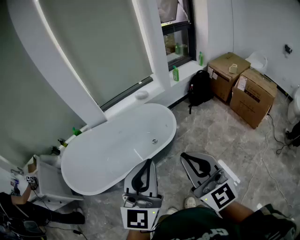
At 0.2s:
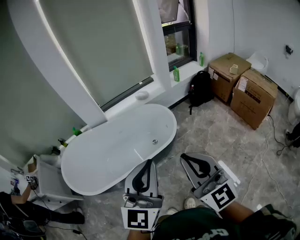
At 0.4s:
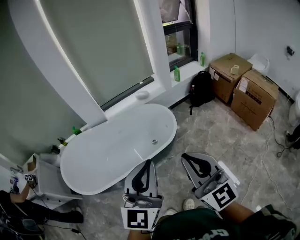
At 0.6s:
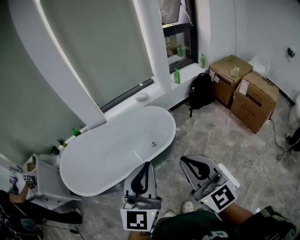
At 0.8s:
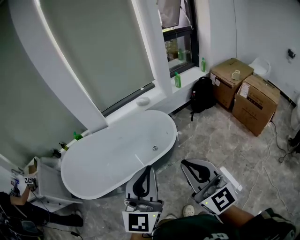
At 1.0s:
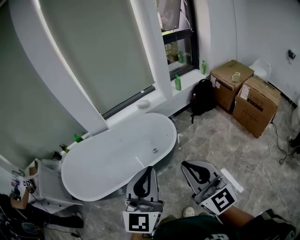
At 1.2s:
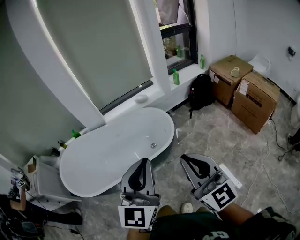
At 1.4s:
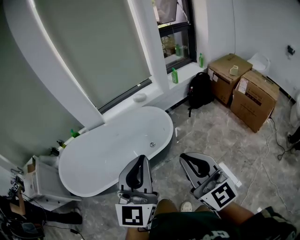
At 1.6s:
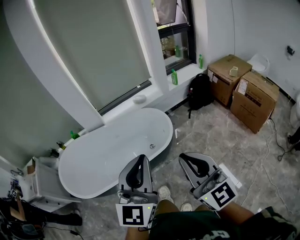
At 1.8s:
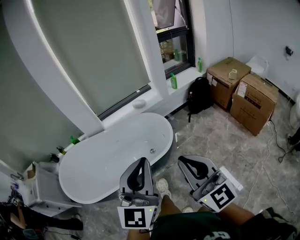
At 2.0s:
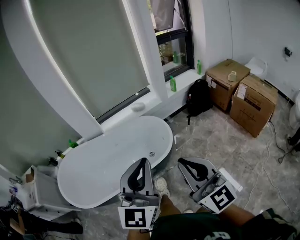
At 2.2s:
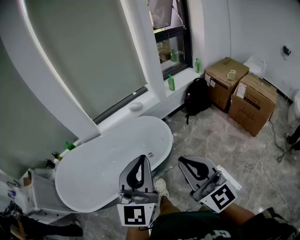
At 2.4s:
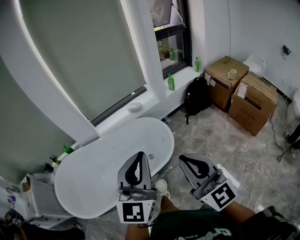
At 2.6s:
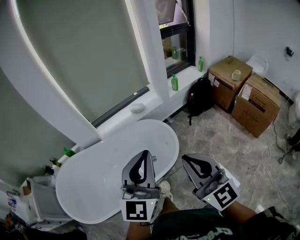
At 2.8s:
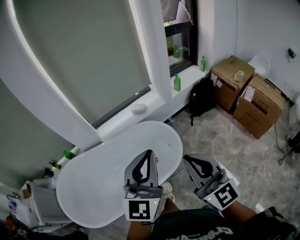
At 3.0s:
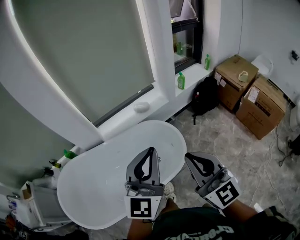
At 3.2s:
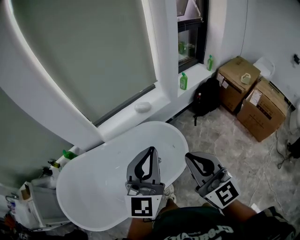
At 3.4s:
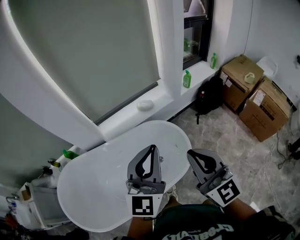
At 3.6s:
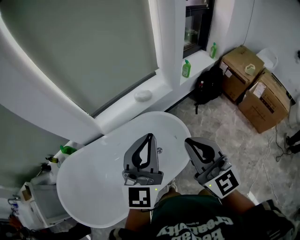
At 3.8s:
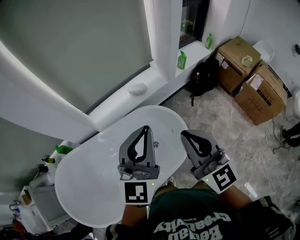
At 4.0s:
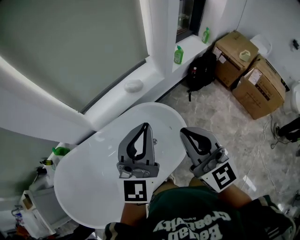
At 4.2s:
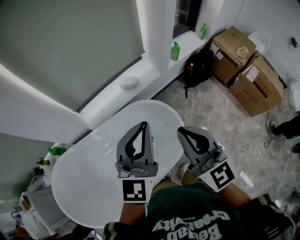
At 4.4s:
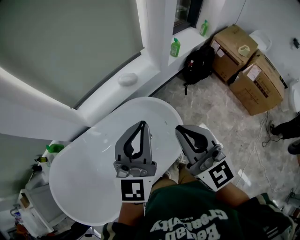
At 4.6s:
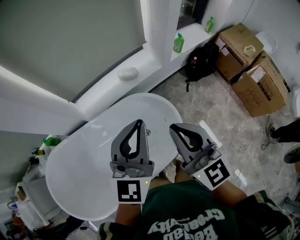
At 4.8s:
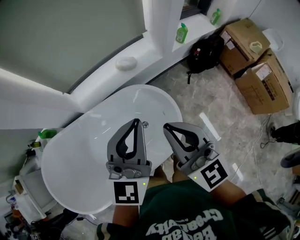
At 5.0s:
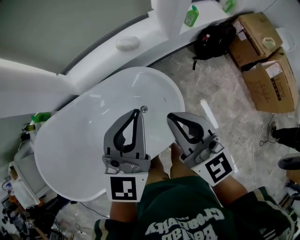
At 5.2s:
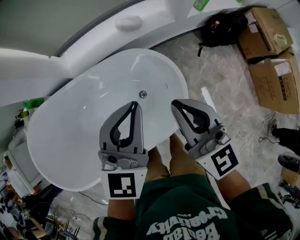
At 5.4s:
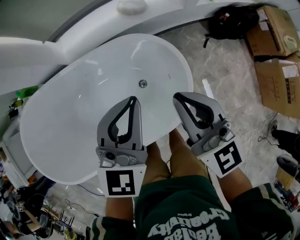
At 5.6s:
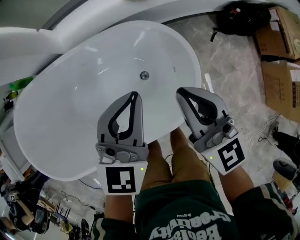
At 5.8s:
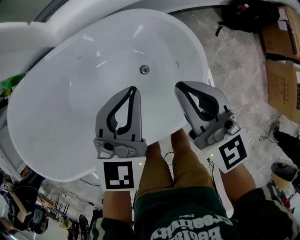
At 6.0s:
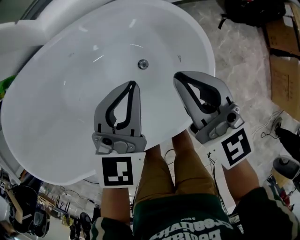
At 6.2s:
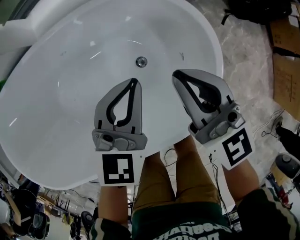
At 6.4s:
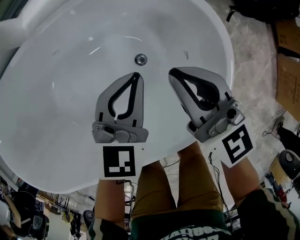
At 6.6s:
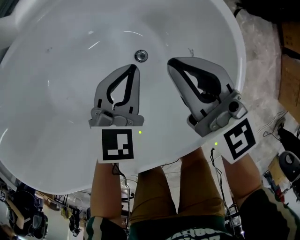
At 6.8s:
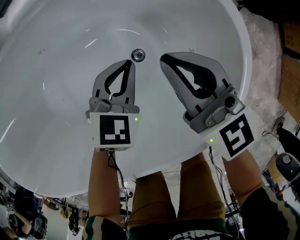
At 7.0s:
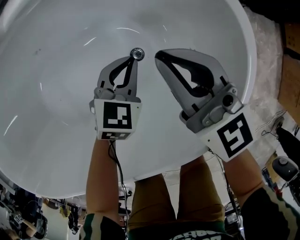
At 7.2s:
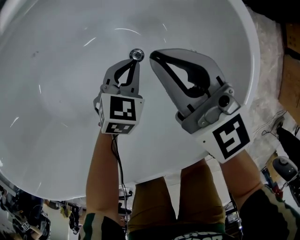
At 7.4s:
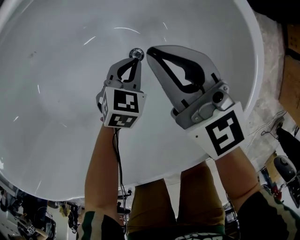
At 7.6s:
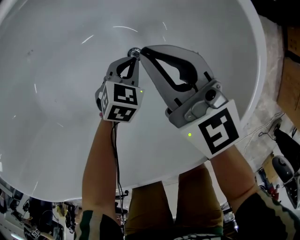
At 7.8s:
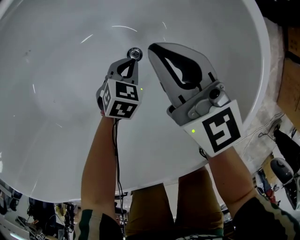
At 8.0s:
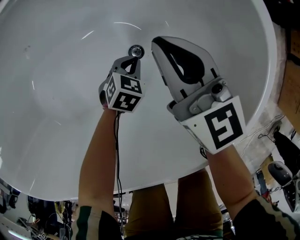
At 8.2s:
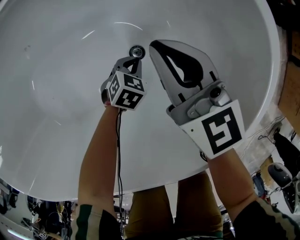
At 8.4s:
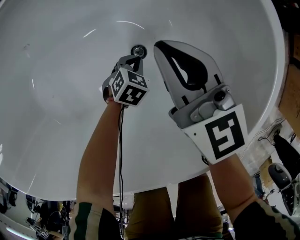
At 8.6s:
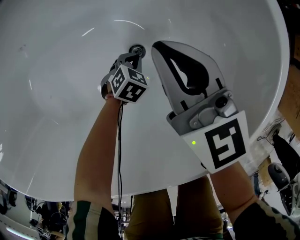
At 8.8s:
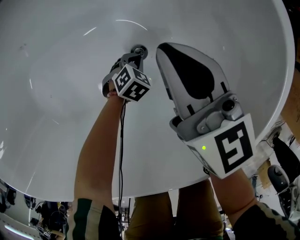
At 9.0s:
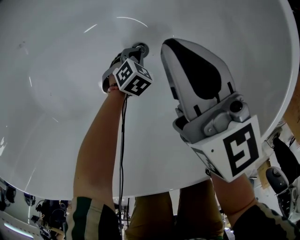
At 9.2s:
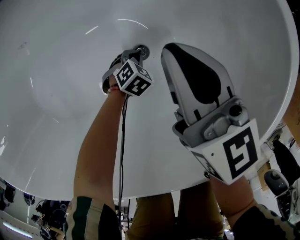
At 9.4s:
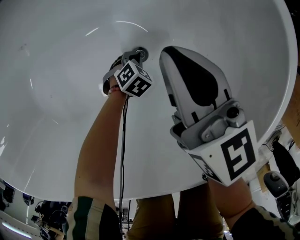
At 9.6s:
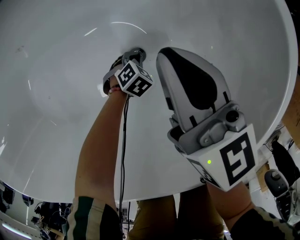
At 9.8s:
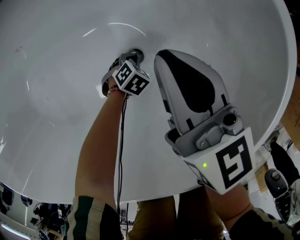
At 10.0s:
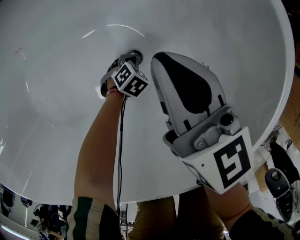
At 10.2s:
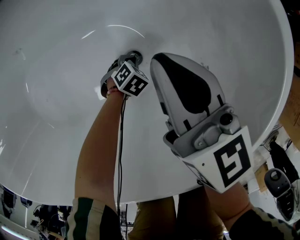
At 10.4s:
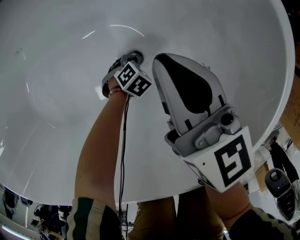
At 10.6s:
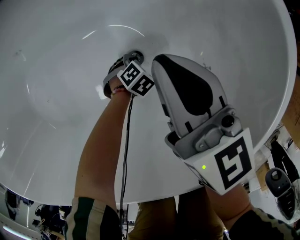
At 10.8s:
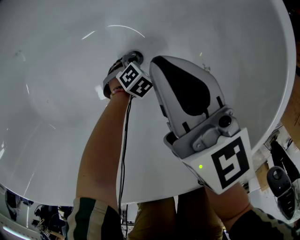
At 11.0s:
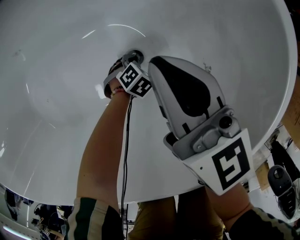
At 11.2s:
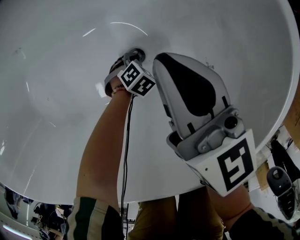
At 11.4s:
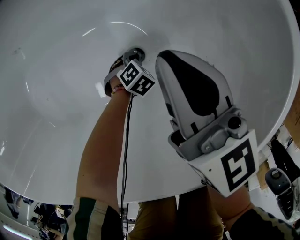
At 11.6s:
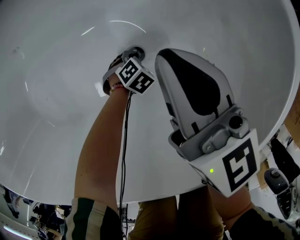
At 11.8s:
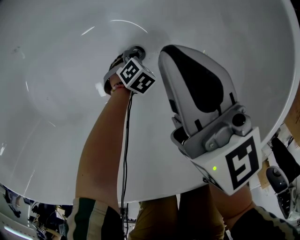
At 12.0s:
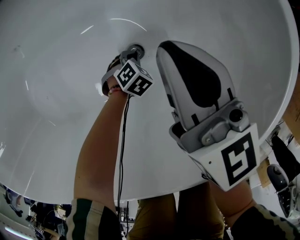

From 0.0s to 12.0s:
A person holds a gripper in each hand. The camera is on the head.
From 0.0s to 1.6s: The right gripper is displaced to the right by about 5 cm; the left gripper changes place by roughly 5 cm.
From 1.6s to 3.0s: Both grippers move forward, roughly 25 cm.
From 3.0s to 4.4s: The two grippers go roughly 20 cm forward.
From 4.4s to 6.0s: The two grippers go roughly 40 cm downward. The left gripper changes its angle by approximately 30 degrees. Meanwhile the right gripper swivels roughly 30 degrees.
From 6.0s to 7.6s: The right gripper moves downward, some 25 cm. Meanwhile the left gripper heads downward, covering about 40 cm, and points its fingers roughly 30 degrees further downward.
From 7.6s to 9.0s: The left gripper travels downward by approximately 15 cm.
From 9.0s to 10.4s: The grippers stay close to where they were, moving slightly.
From 10.4s to 12.0s: Both grippers stay about where they are.

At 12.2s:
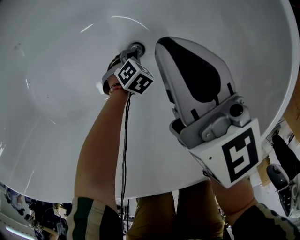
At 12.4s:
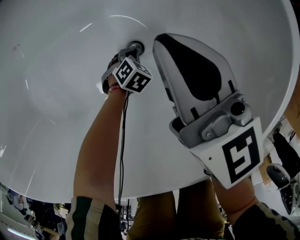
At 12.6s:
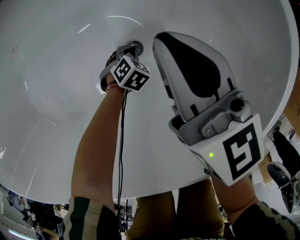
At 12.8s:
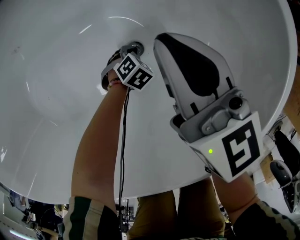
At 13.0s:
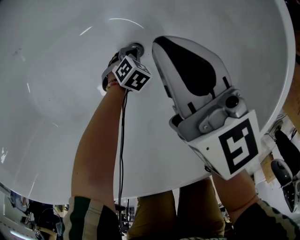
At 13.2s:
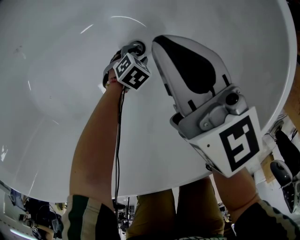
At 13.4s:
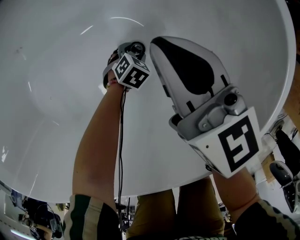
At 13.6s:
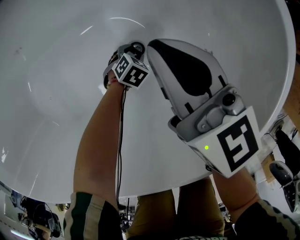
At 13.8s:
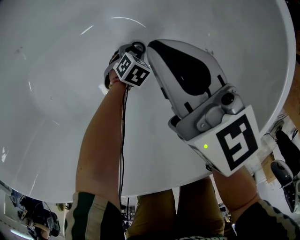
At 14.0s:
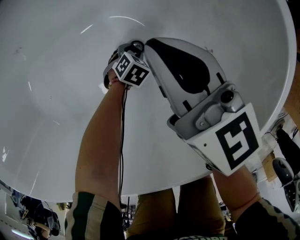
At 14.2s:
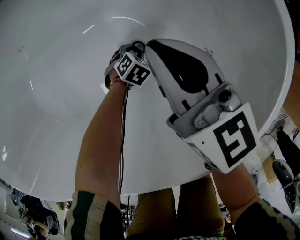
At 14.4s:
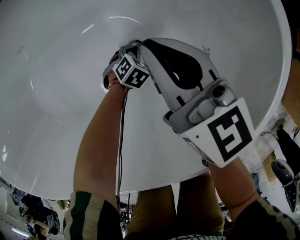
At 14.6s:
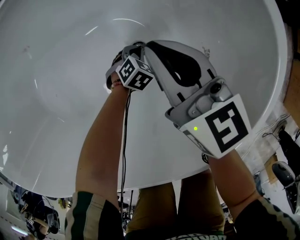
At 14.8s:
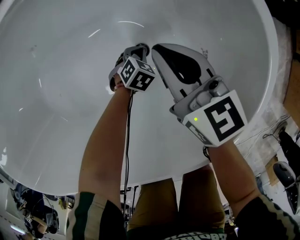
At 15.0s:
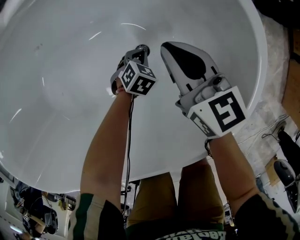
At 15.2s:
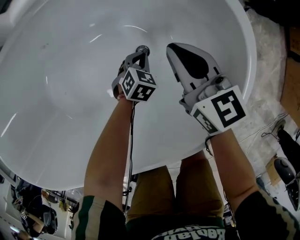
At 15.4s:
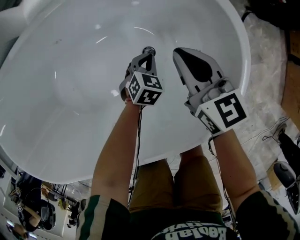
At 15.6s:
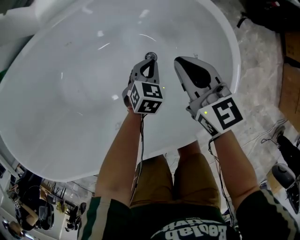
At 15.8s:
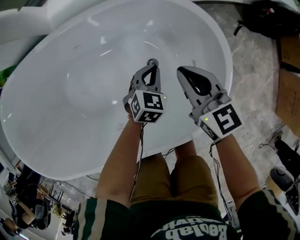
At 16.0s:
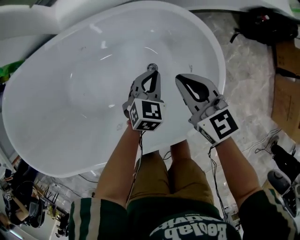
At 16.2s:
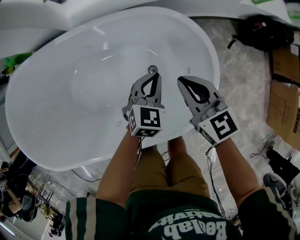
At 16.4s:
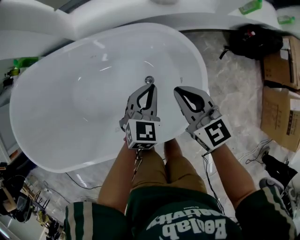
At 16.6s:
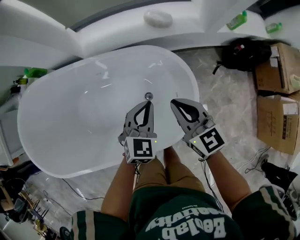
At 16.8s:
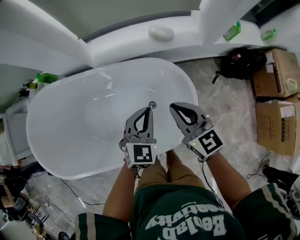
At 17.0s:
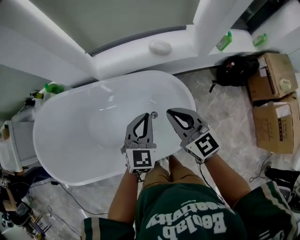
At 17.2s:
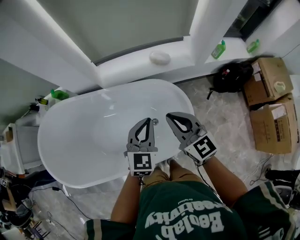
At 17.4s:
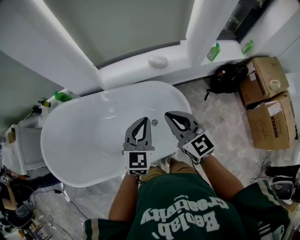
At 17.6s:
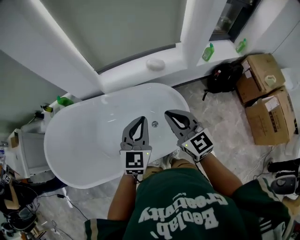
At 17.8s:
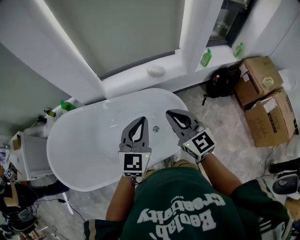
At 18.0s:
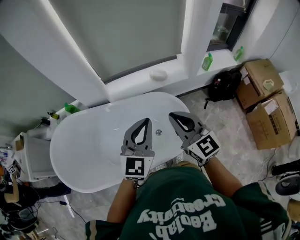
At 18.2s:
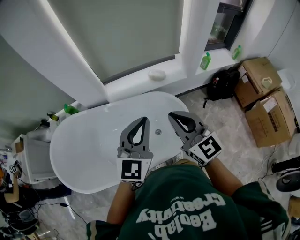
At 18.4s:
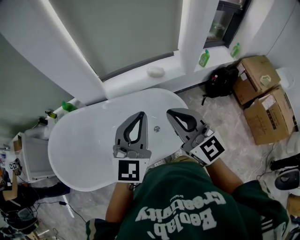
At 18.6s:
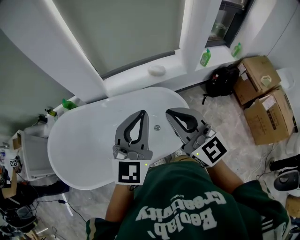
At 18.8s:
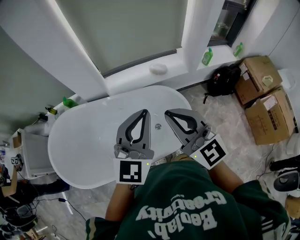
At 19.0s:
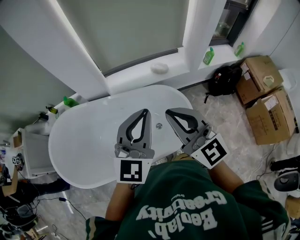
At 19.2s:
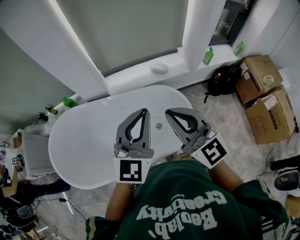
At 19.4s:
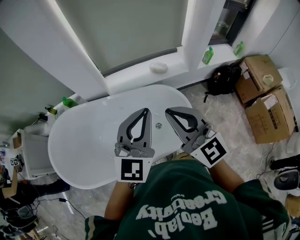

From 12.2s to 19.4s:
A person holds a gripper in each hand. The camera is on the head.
From 12.2s to 13.6s: The left gripper opens up.
From 13.6s to 15.0s: The left gripper is displaced upward by approximately 10 cm, and closes.
From 15.0s to 16.6s: The right gripper travels upward by roughly 30 cm. The left gripper moves upward, approximately 50 cm, and tips its fingers upward by some 40 degrees.
From 16.6s to 18.0s: The grippers both shift upward by about 35 cm. The right gripper rotates about 20 degrees, while the left gripper turns by about 30 degrees.
From 18.0s to 19.4s: The grippers both shift upward by approximately 5 cm.

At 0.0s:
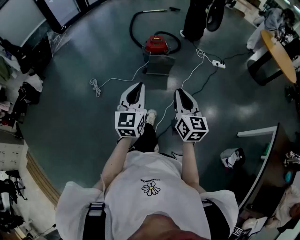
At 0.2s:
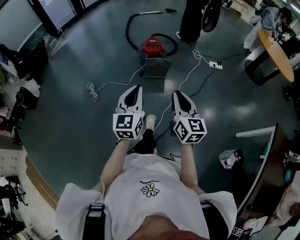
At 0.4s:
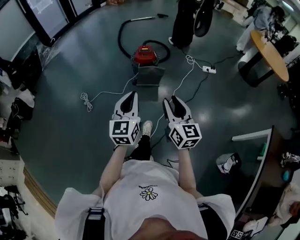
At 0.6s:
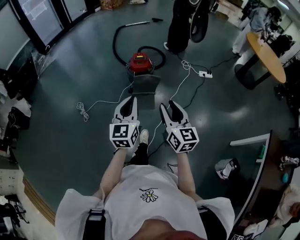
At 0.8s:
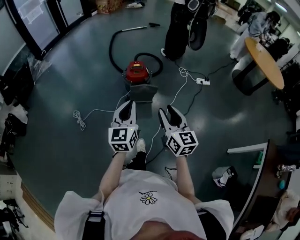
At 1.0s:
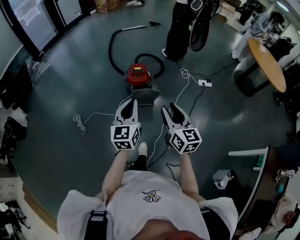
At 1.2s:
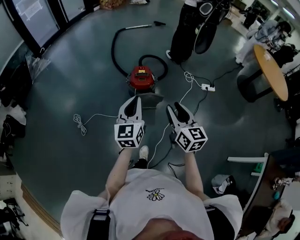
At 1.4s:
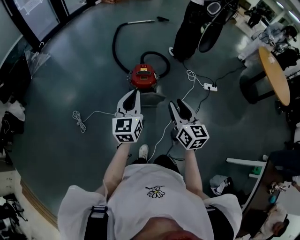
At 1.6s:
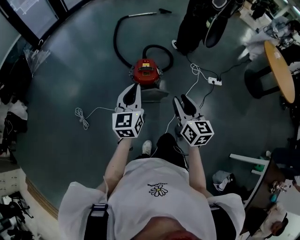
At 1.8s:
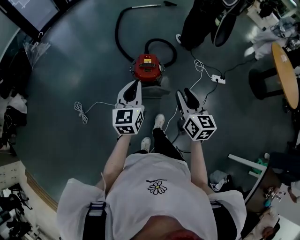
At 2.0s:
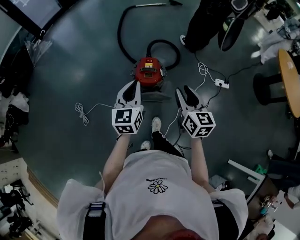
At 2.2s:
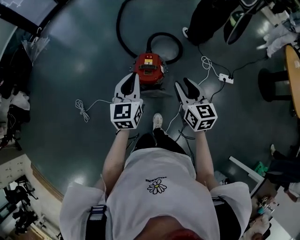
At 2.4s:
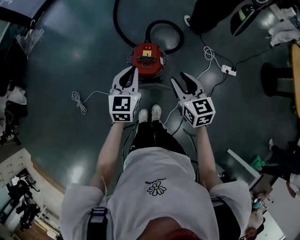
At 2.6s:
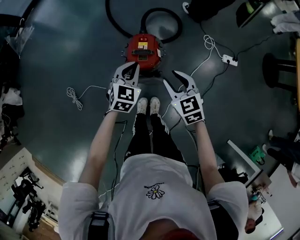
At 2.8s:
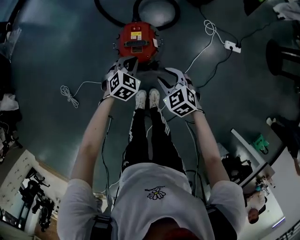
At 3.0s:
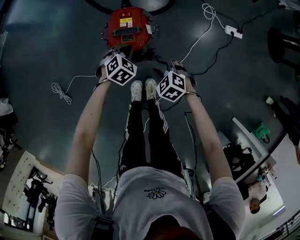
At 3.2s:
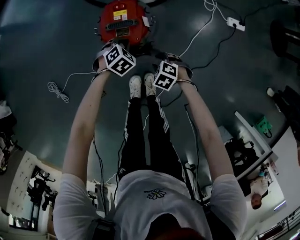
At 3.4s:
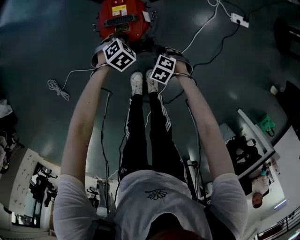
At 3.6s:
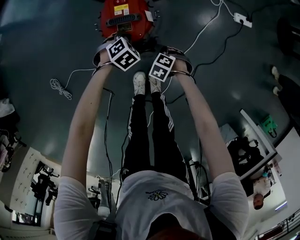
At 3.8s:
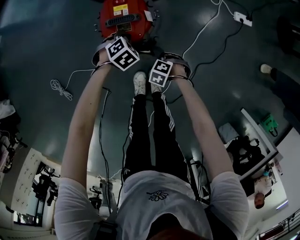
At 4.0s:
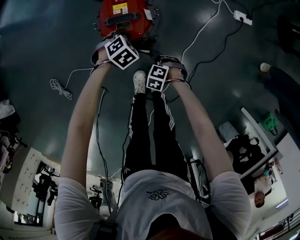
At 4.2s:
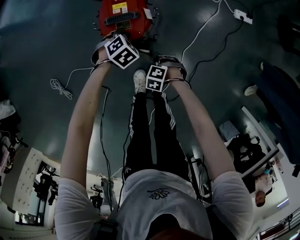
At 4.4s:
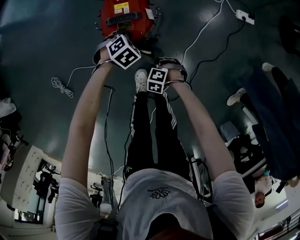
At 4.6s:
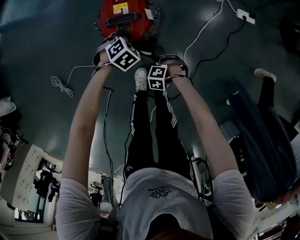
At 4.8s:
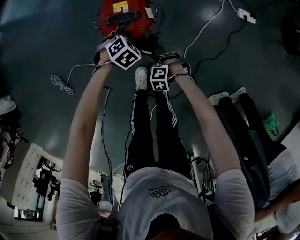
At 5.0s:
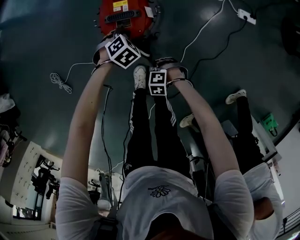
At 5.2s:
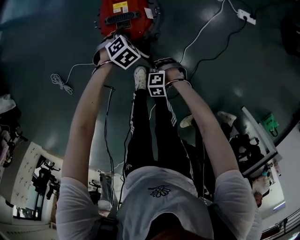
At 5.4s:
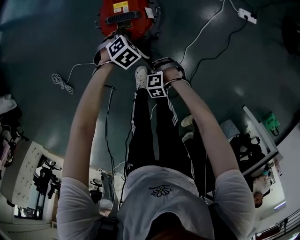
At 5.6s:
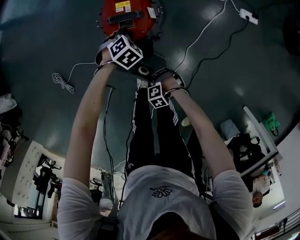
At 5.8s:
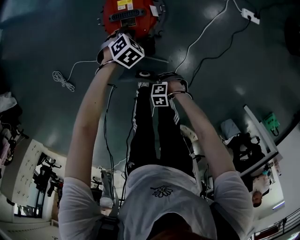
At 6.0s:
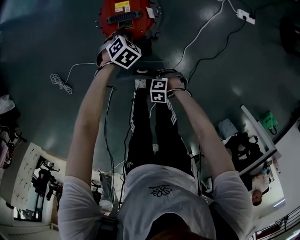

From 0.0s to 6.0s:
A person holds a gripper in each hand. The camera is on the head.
From 0.0s to 1.6s: The two grippers travel together, forward, some 50 cm. The right gripper opens its fingers.
From 1.6s to 3.0s: The two grippers go about 50 cm downward and forward. The right gripper points its fingers approximately 50 degrees further downward, while the left gripper angles its fingers downward, by some 50 degrees.
From 3.0s to 4.4s: The right gripper moves downward, approximately 15 cm, changes its angle by roughly 30 degrees, and closes, while the left gripper goes about 10 cm downward.
From 4.4s to 6.0s: The right gripper moves roughly 10 cm.
